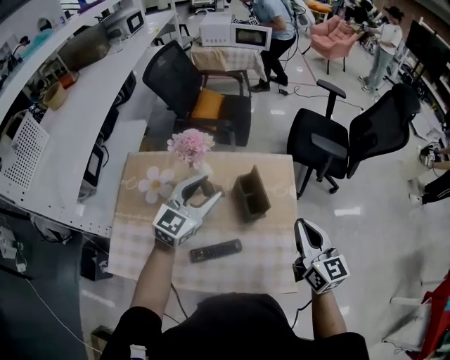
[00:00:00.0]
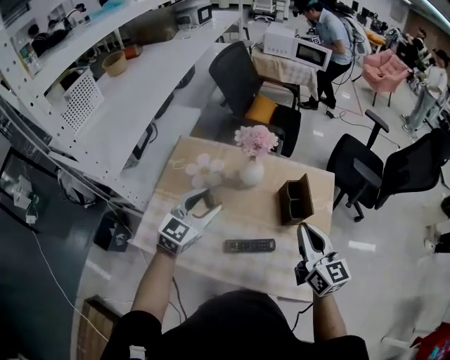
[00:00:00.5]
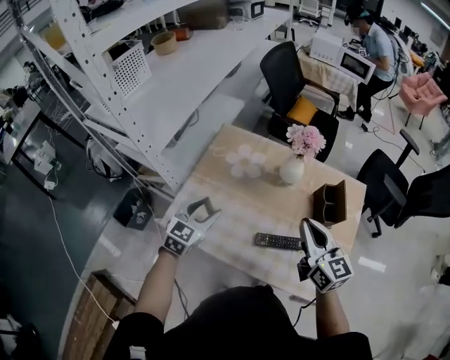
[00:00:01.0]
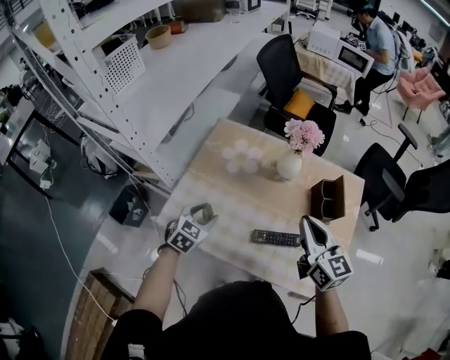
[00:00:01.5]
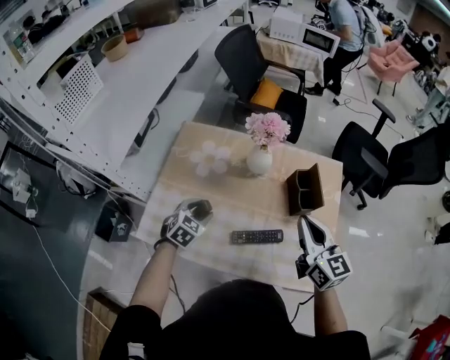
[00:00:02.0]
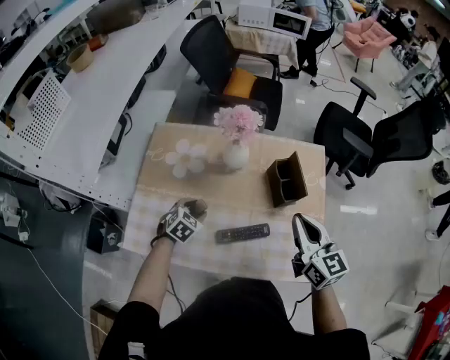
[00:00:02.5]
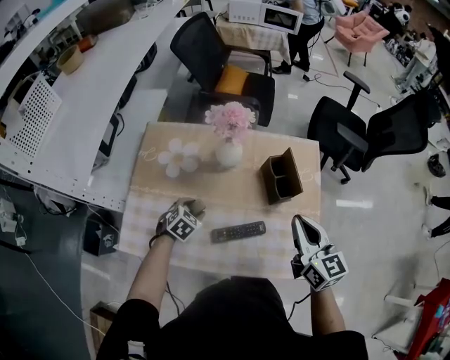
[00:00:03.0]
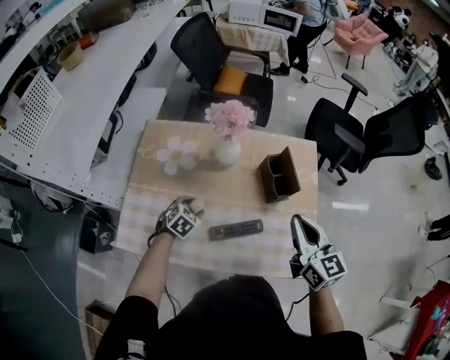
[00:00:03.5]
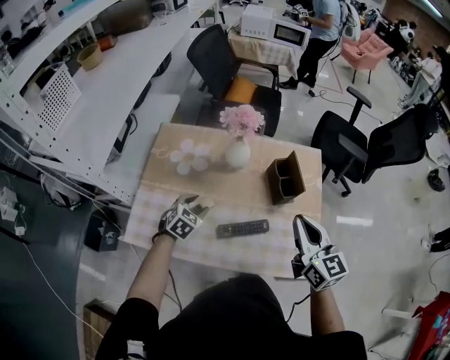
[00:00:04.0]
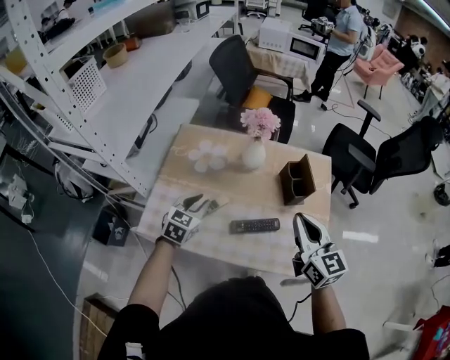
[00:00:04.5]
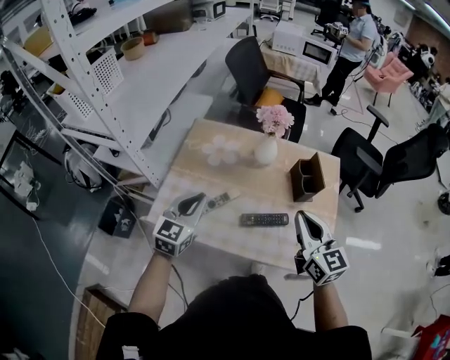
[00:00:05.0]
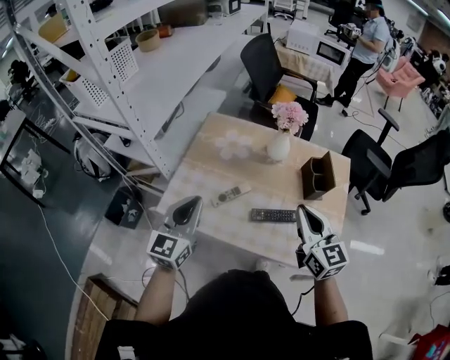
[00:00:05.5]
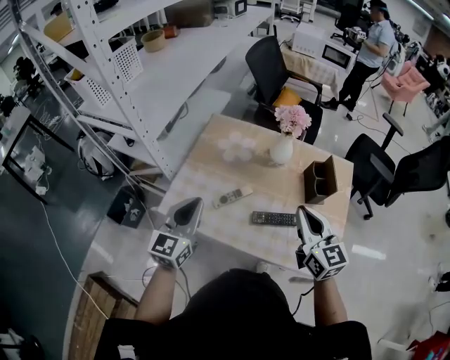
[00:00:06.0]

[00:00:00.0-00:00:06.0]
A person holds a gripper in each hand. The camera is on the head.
00:00:00.0 to 00:00:02.0: The left gripper moves approximately 35 cm, and tilts its fingers about 40 degrees downward, while the right gripper moves some 20 cm.
00:00:02.0 to 00:00:04.0: The left gripper goes downward and returns, some 10 cm each way. Meanwhile the right gripper shifts by approximately 5 cm.
00:00:04.0 to 00:00:06.0: The right gripper shifts some 10 cm to the left. Meanwhile the left gripper travels upward, backward and to the left by some 30 cm, points its fingers about 40 degrees further upward, and closes up.

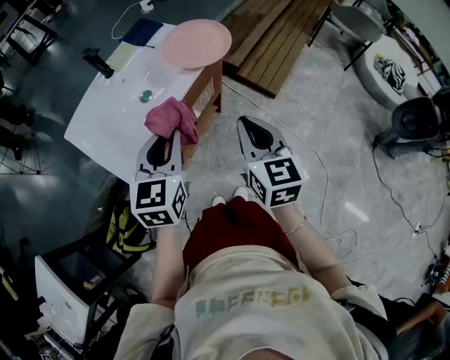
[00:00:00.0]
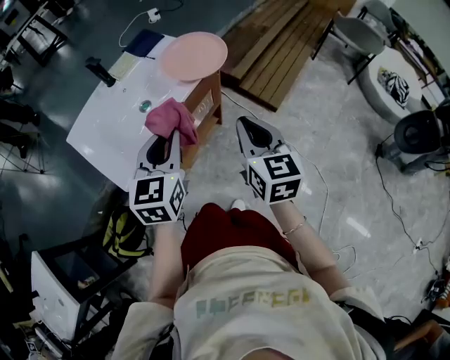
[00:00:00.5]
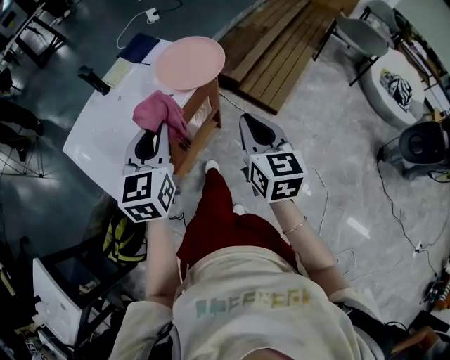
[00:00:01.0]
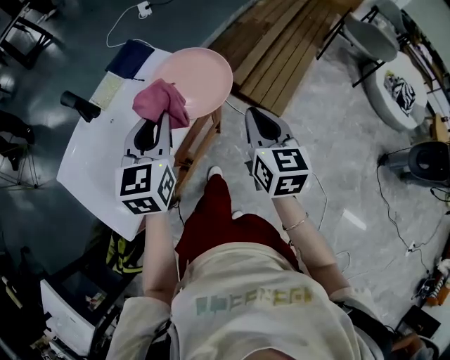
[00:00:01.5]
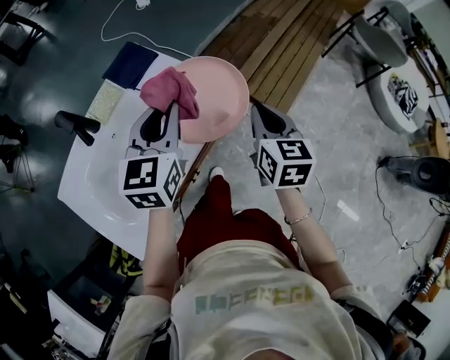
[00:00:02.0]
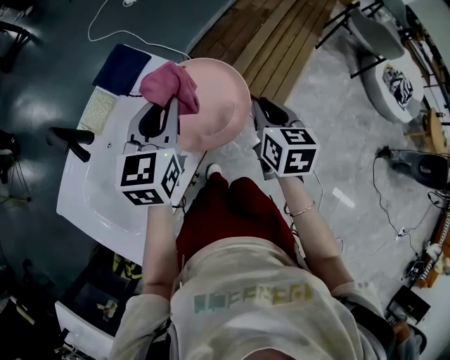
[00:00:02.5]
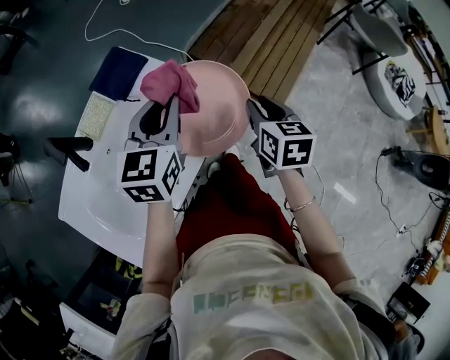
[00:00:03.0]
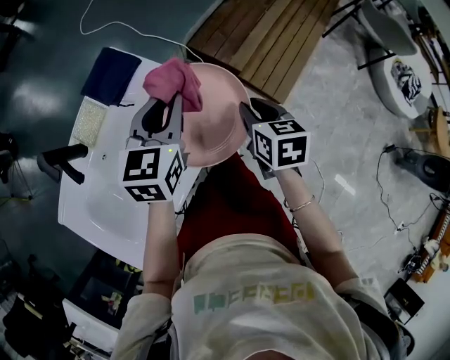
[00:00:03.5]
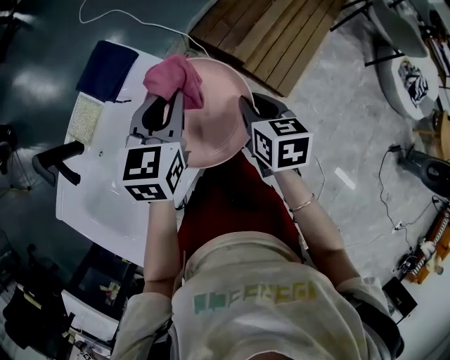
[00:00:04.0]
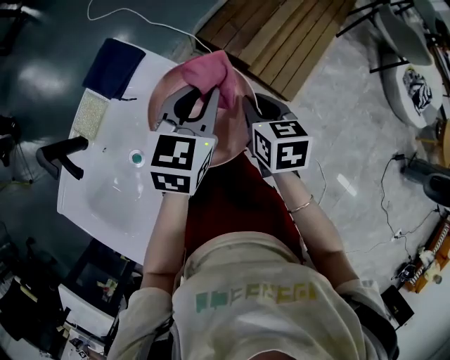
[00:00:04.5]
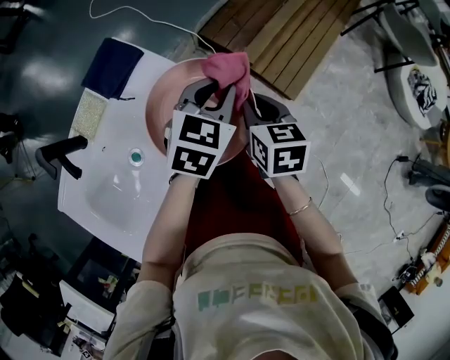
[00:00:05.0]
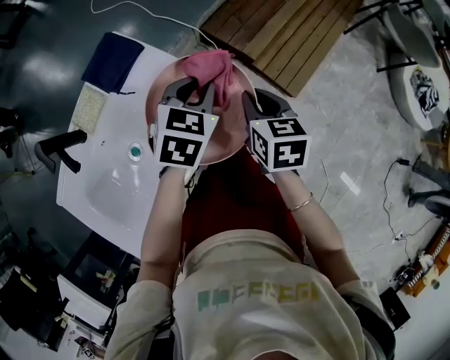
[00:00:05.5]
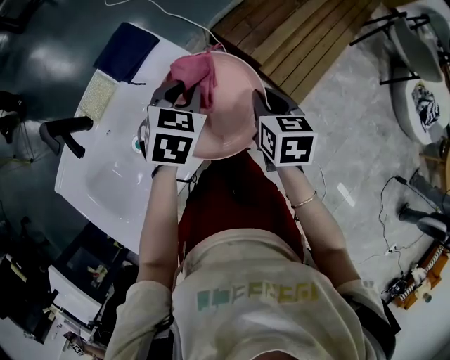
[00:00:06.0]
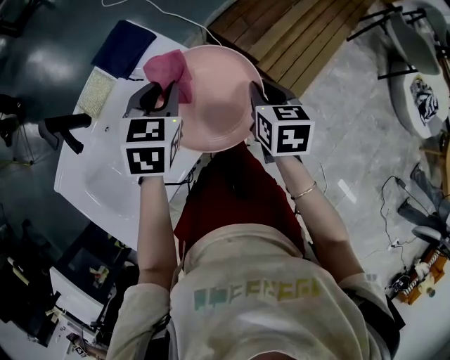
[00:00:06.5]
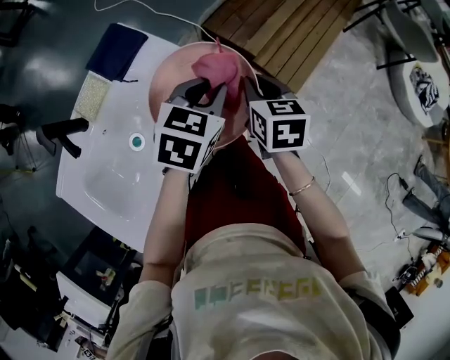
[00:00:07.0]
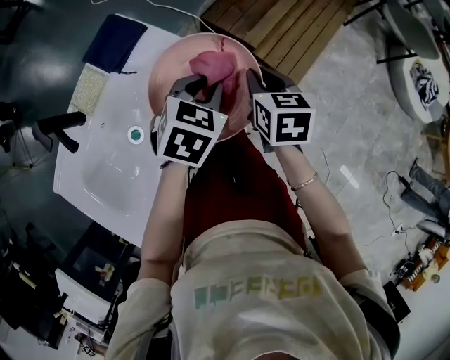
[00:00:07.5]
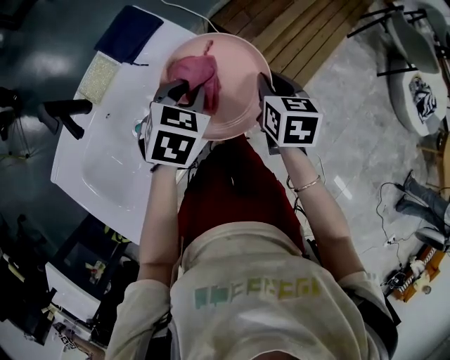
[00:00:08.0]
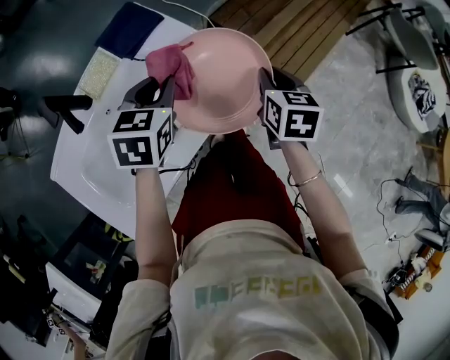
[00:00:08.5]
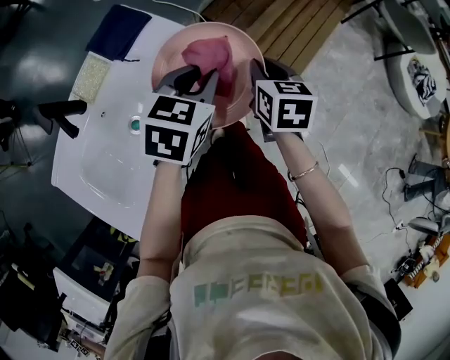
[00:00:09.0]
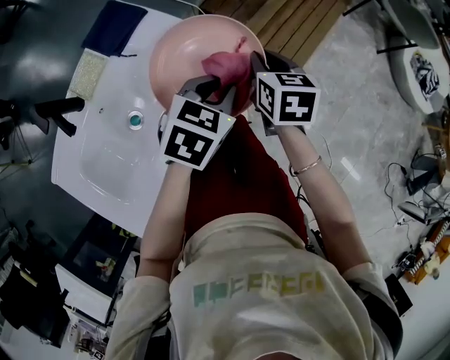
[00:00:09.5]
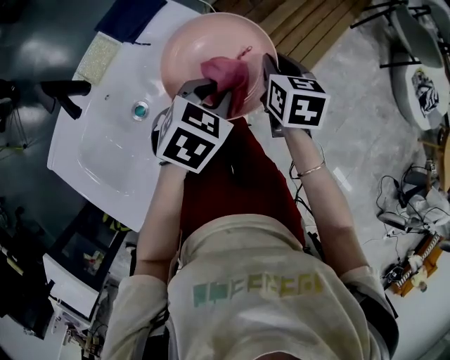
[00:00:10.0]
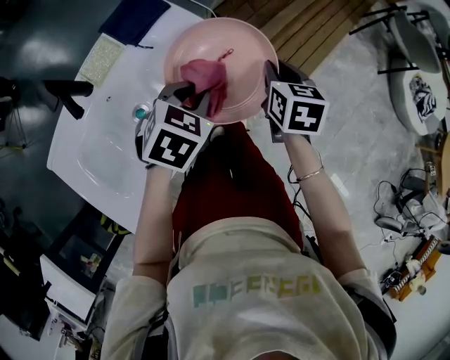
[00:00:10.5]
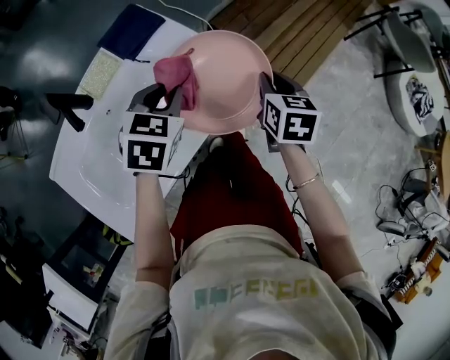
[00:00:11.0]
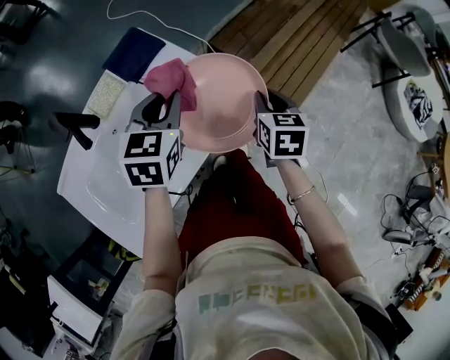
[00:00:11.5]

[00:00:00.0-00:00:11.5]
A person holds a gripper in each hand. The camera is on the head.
00:00:00.0 to 00:00:02.0: The grippers both shift forward by approximately 35 cm.
00:00:02.0 to 00:00:04.0: Both grippers travel together forward and downward, roughly 15 cm.
00:00:04.0 to 00:00:06.0: The left gripper is displaced downward by approximately 5 cm, moves some 10 cm to the right and comes back, and swivels roughly 20 degrees.
00:00:06.0 to 00:00:07.5: The left gripper heads to the right, covering roughly 5 cm.
00:00:07.5 to 00:00:09.5: The left gripper heads backward, covering approximately 5 cm, and moves some 15 cm to the left and comes back.
00:00:09.5 to 00:00:11.5: The left gripper moves to the left and upward, some 15 cm, and swivels approximately 30 degrees.

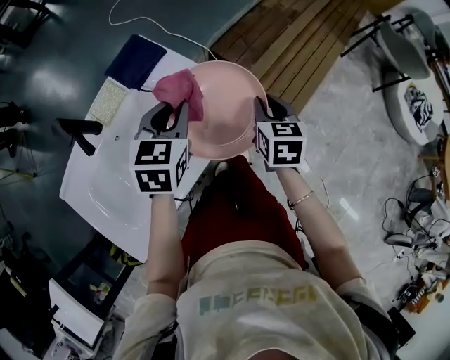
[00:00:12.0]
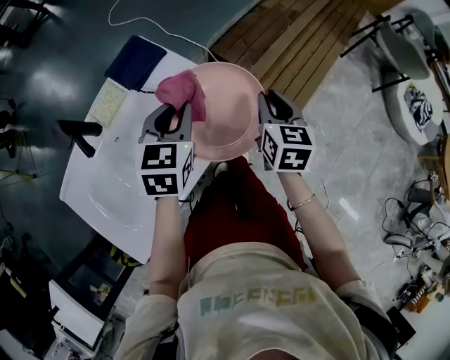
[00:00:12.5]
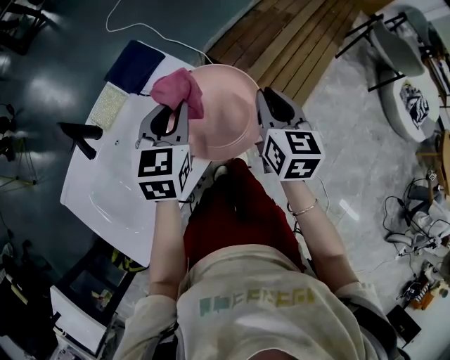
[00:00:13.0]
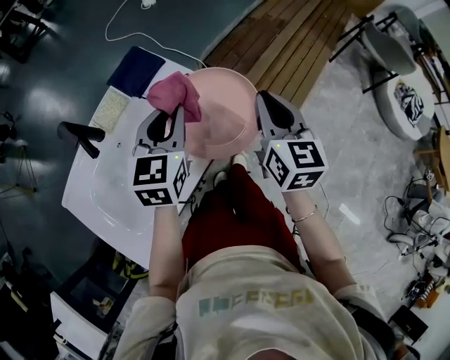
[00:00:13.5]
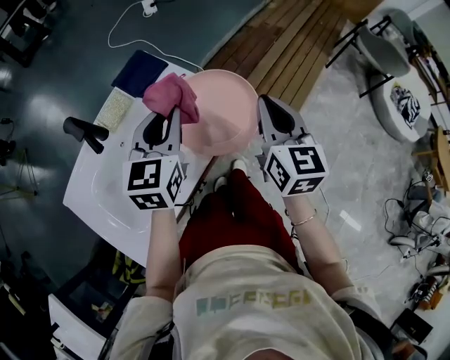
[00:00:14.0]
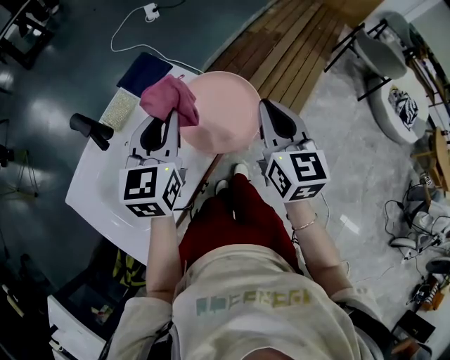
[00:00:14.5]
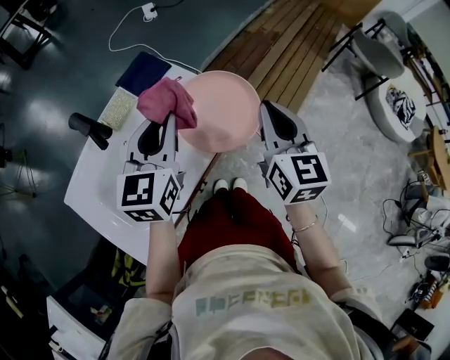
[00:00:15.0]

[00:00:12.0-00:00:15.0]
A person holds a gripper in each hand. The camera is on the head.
00:00:12.0 to 00:00:13.5: The right gripper goes some 10 cm upward, and changes its angle by about 20 degrees.
00:00:13.5 to 00:00:15.0: The left gripper travels upward and backward by about 10 cm. The right gripper is displaced backward and upward by some 10 cm.

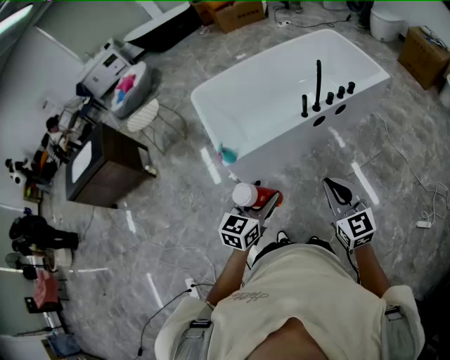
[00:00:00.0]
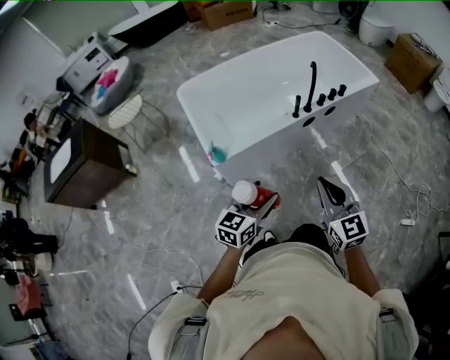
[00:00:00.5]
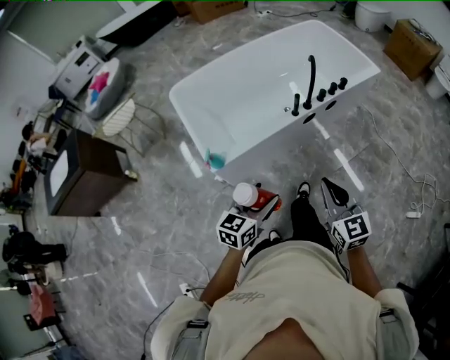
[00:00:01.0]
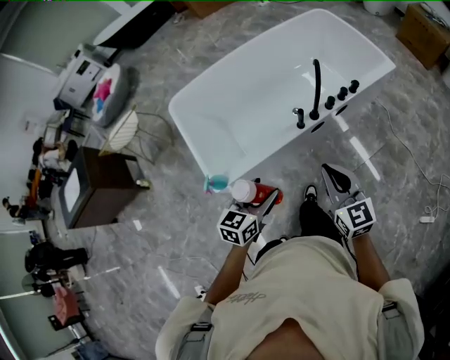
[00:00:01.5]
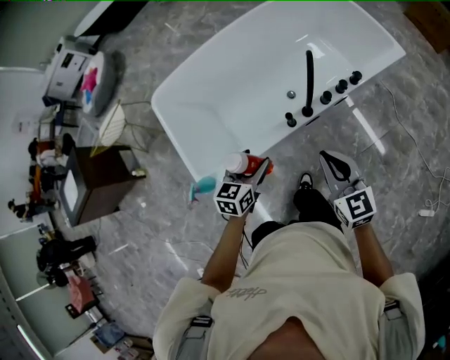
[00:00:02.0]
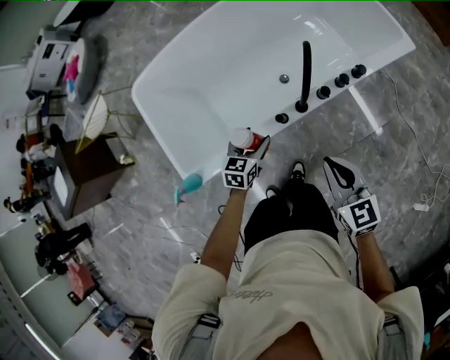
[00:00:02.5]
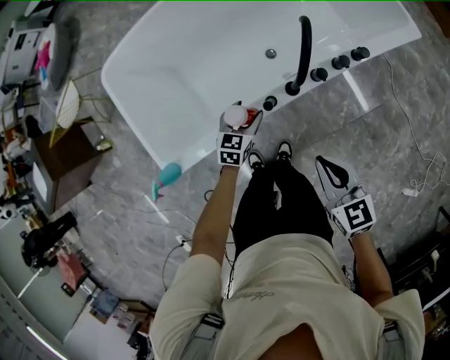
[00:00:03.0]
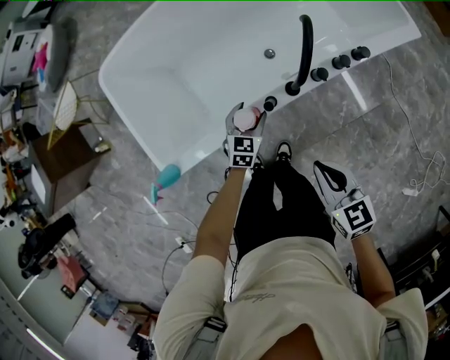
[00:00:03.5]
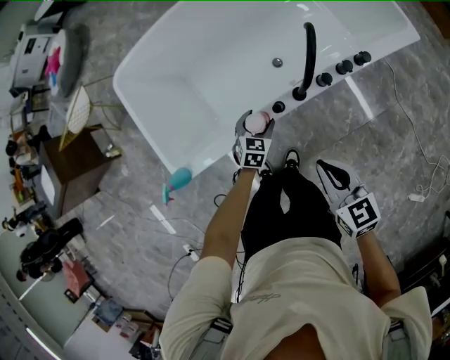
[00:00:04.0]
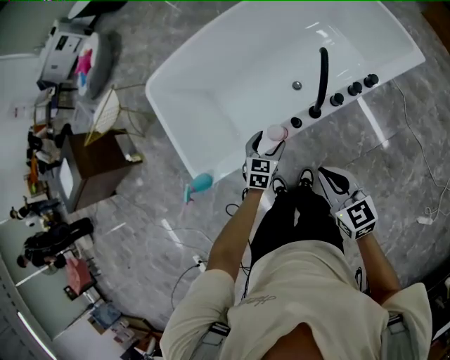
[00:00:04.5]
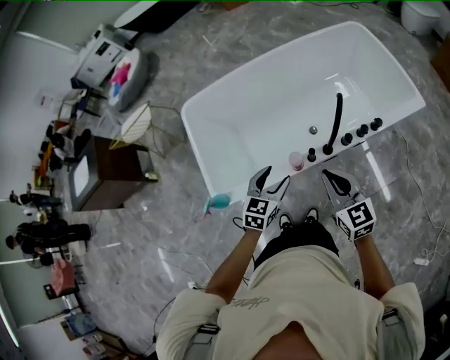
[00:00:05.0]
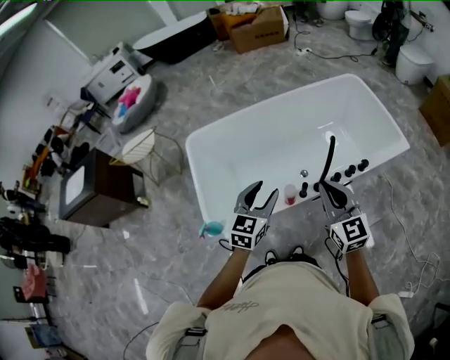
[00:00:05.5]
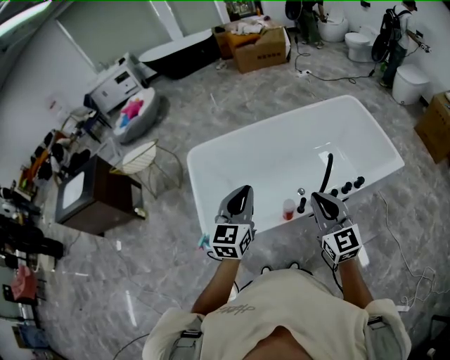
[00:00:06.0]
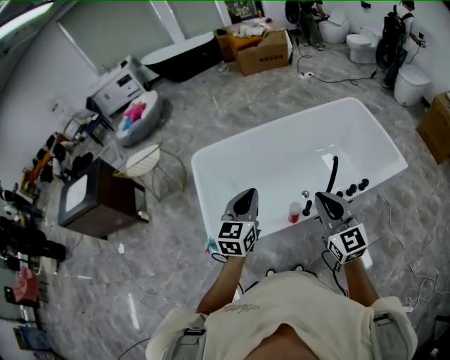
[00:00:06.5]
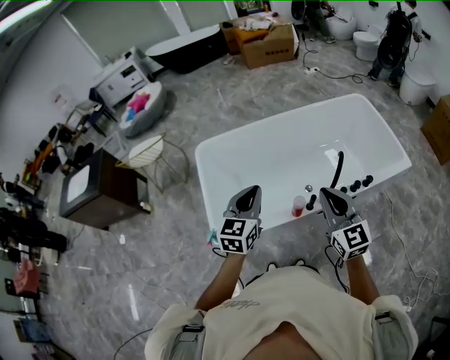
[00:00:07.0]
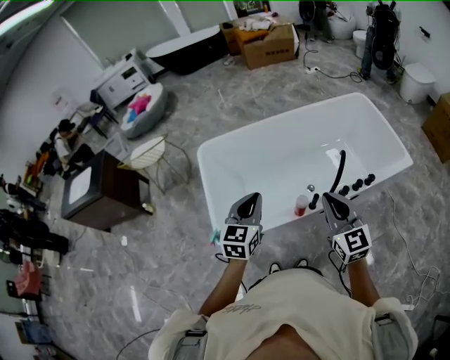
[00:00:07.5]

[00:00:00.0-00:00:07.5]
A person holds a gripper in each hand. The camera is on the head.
00:00:00.0 to 00:00:02.0: The two grippers go roughly 35 cm forward.
00:00:02.0 to 00:00:04.0: The left gripper is displaced downward and forward by some 25 cm, and swivels approximately 20 degrees. Meanwhile the right gripper is displaced downward by roughly 10 cm.
00:00:04.0 to 00:00:05.5: The left gripper travels upward by about 35 cm, and changes its angle by approximately 30 degrees. Meanwhile the right gripper is displaced upward by about 20 cm, and rotates about 30 degrees.
00:00:05.5 to 00:00:07.5: The left gripper goes some 10 cm to the left, and closes up.
